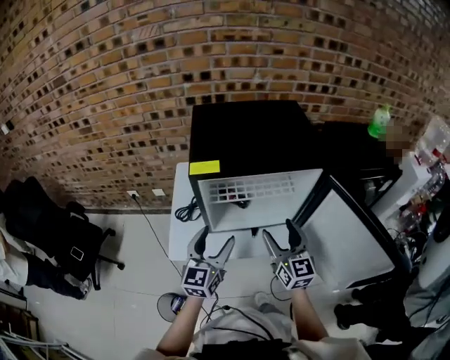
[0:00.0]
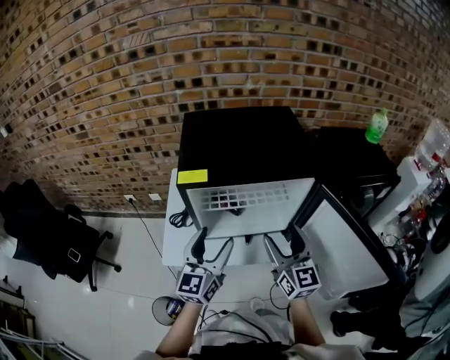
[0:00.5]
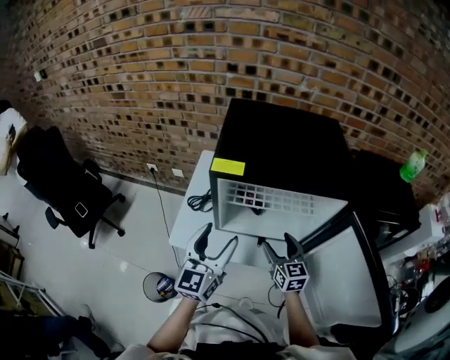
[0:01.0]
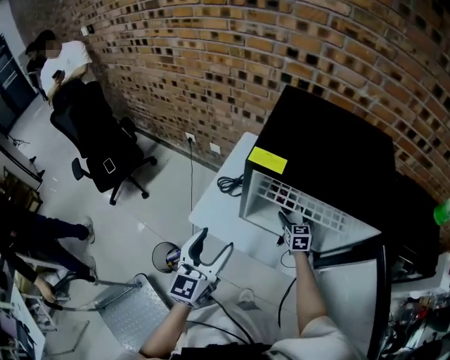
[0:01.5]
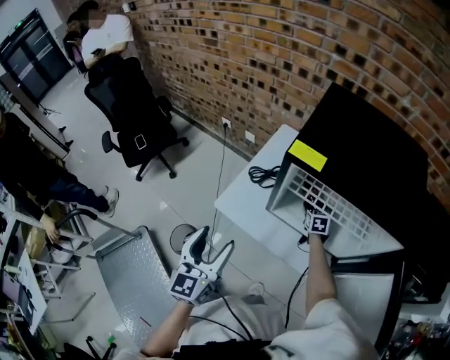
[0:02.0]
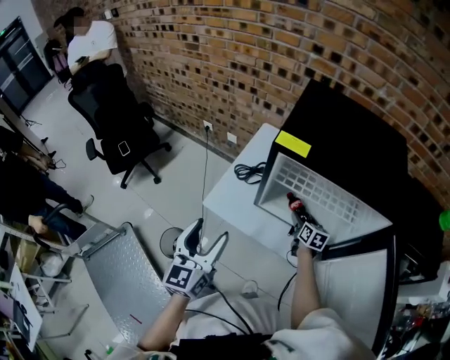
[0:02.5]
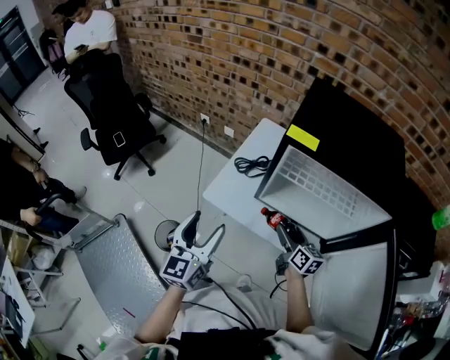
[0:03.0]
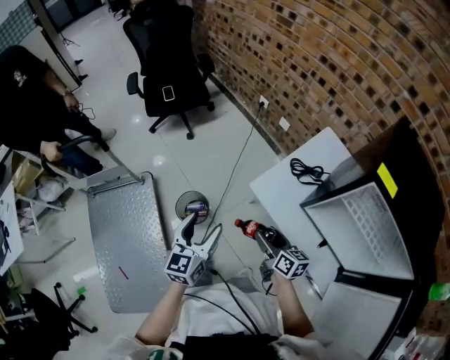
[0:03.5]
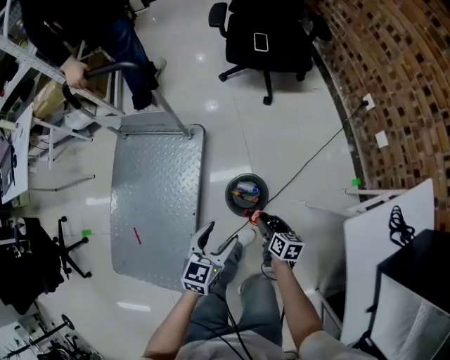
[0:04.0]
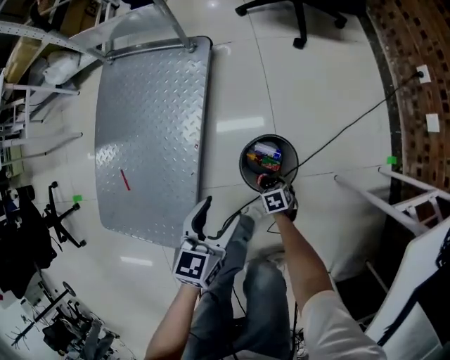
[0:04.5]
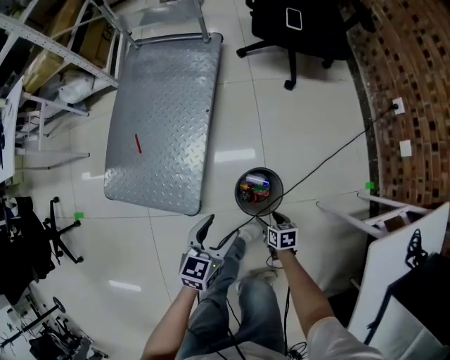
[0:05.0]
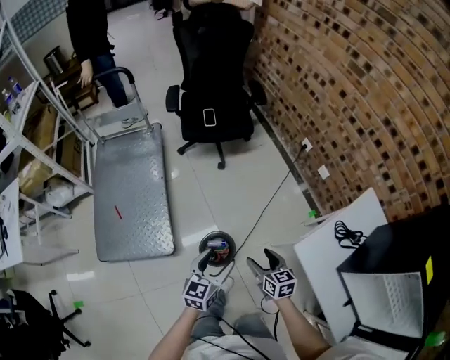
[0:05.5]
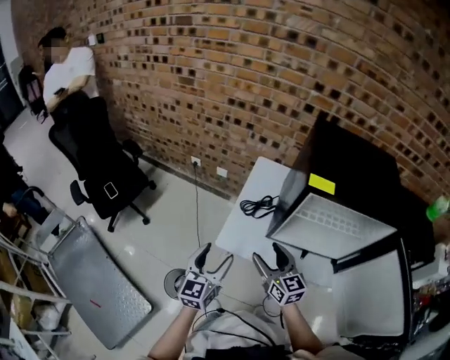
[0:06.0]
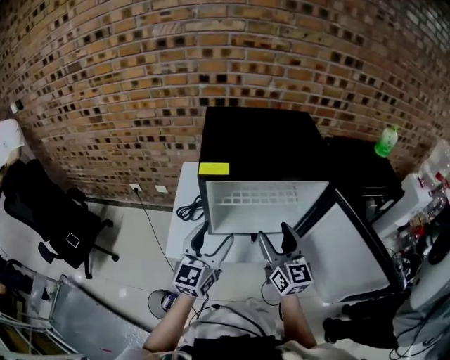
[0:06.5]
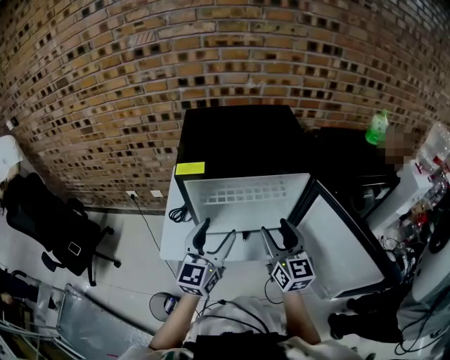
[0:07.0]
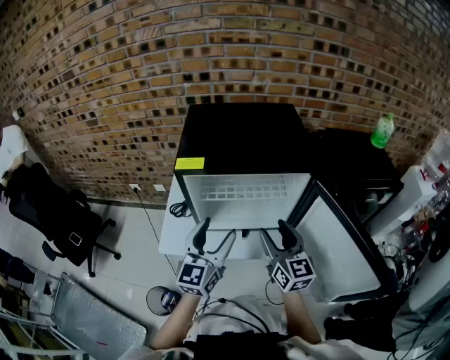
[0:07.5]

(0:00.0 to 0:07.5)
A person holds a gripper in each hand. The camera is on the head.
0:00.0 - 0:02.0: The left gripper moves some 15 cm, and turns by some 40 degrees, while the right gripper is displaced downward by about 30 cm, and angles its fingers downward, by some 40 degrees.
0:02.0 - 0:04.0: The right gripper changes place by some 70 cm, and turns by about 60 degrees. The left gripper heads downward, covering approximately 35 cm, and swivels about 40 degrees.
0:04.0 - 0:05.5: The right gripper shifts about 20 cm upward, and swivels some 20 degrees. The left gripper moves upward, approximately 10 cm.
0:05.5 - 0:07.5: The two grippers travel together, some 60 cm. The left gripper changes its angle by about 60 degrees, while the right gripper angles its fingers upward, by approximately 30 degrees.

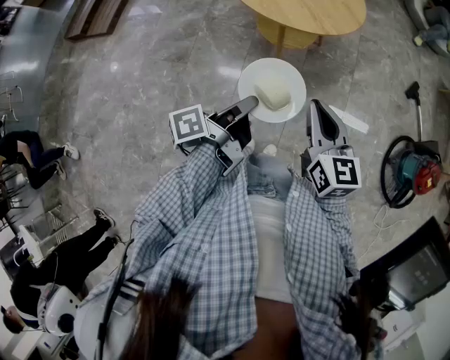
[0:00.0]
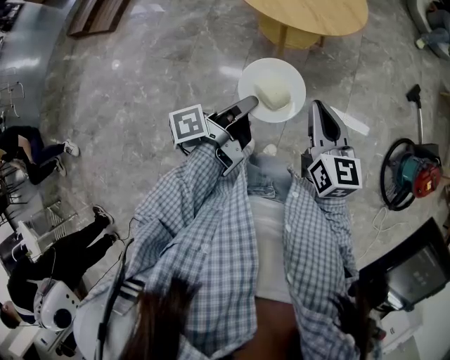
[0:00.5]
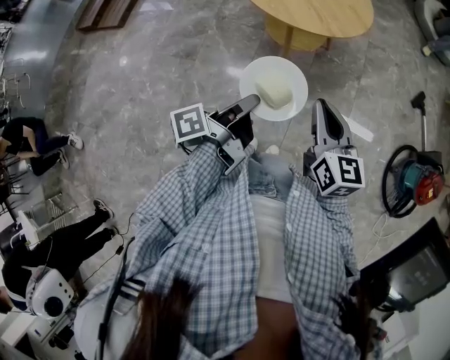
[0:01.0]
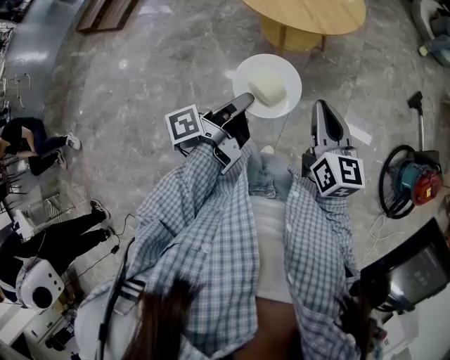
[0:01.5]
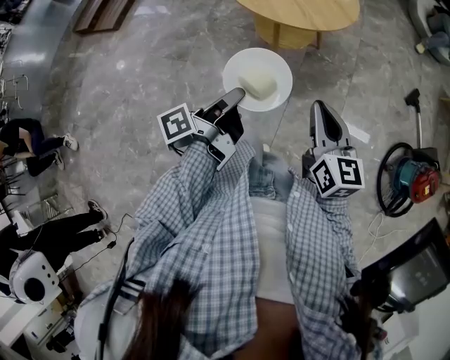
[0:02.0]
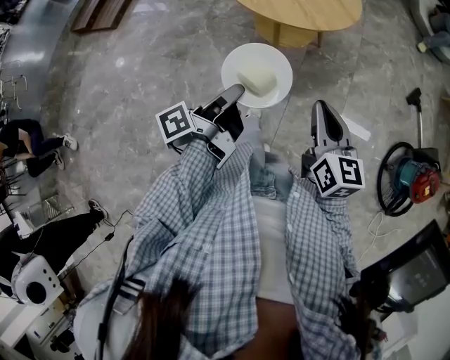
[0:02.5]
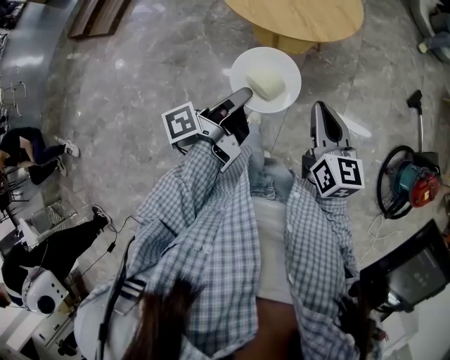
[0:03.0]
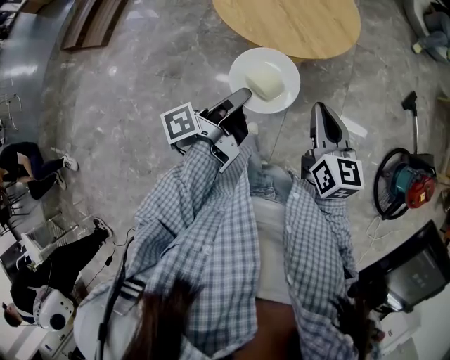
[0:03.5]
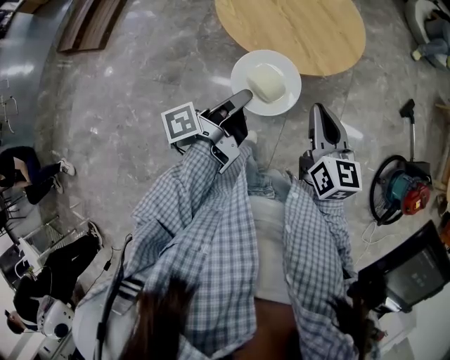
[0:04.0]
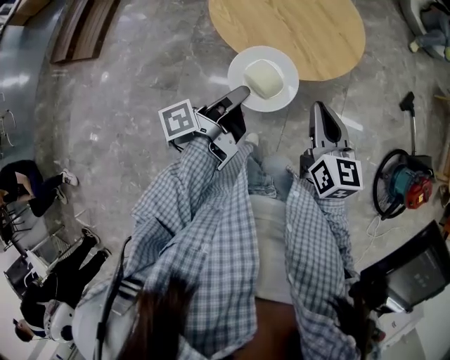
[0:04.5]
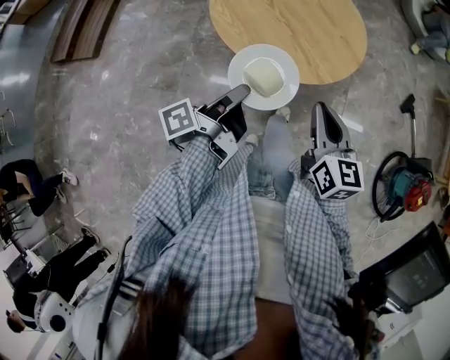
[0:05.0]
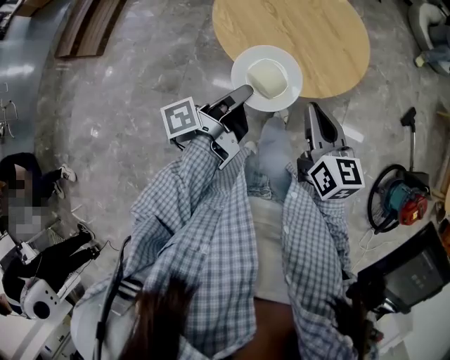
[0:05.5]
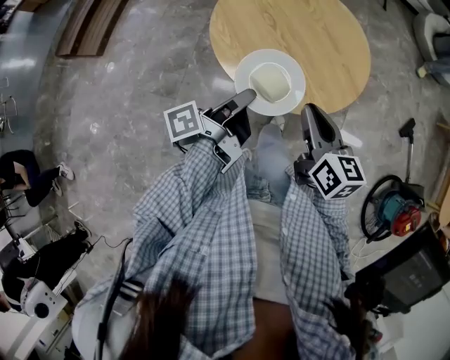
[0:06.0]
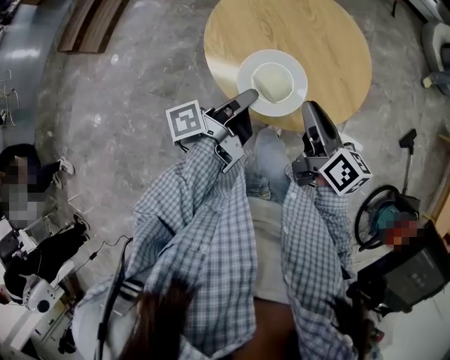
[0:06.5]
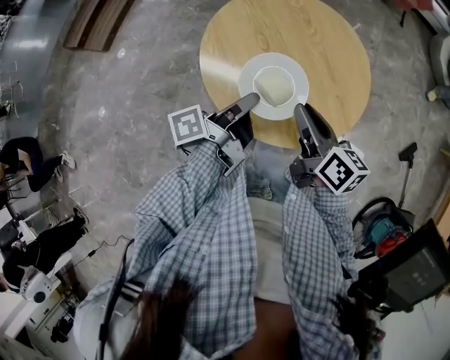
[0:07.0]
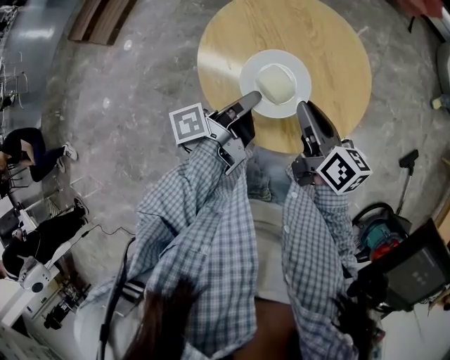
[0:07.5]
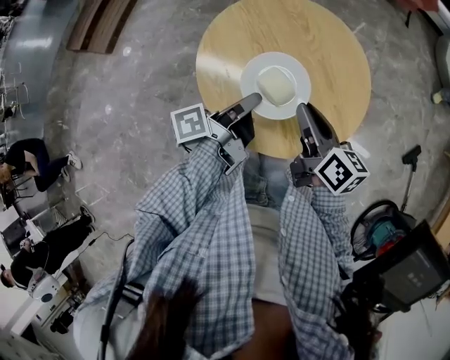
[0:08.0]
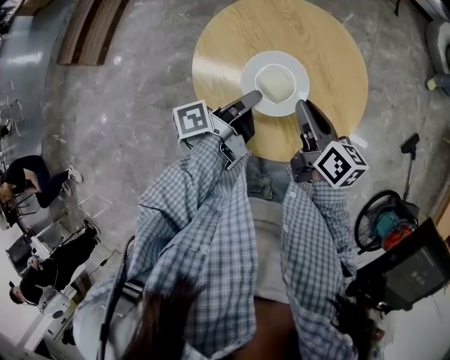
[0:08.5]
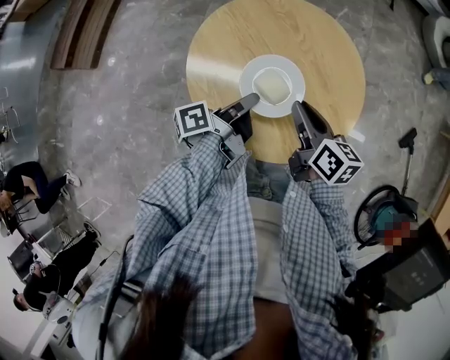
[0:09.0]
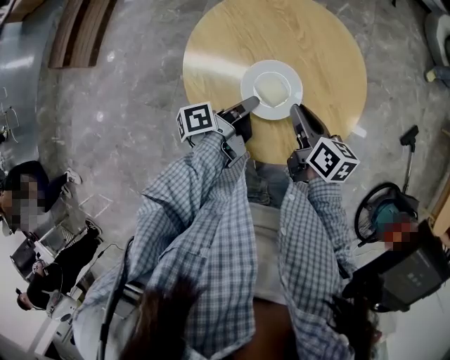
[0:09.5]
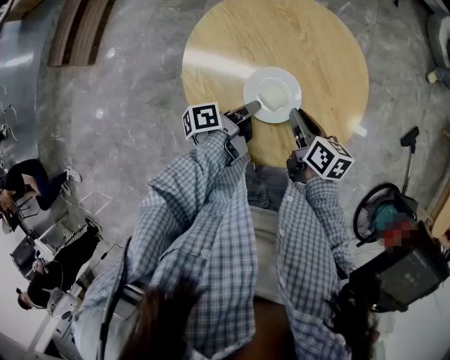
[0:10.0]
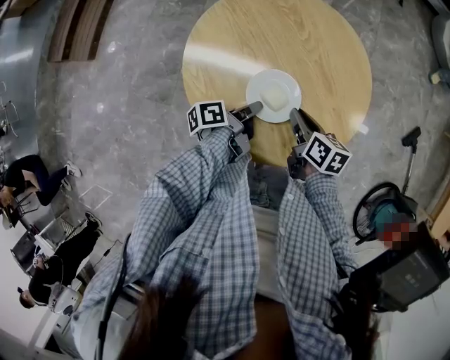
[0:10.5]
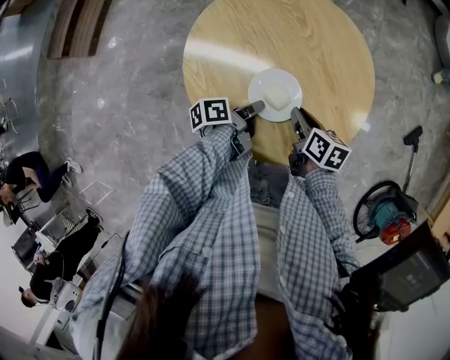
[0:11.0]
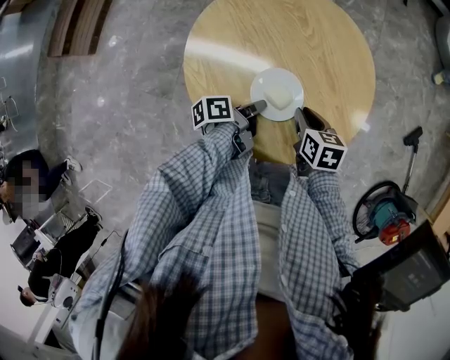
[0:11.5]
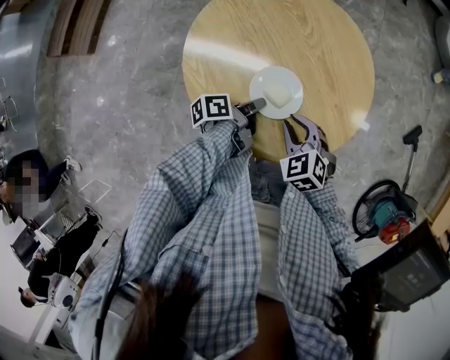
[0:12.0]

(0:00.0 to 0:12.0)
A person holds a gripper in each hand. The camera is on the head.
0:00.0 - 0:02.0: The right gripper moves roughly 5 cm.
0:02.0 - 0:04.0: The right gripper ends up approximately 20 cm from where it was.
0:04.0 - 0:06.0: The right gripper shifts by some 15 cm.
0:06.0 - 0:08.0: The right gripper moves approximately 15 cm, and swivels approximately 20 degrees.
0:08.0 - 0:10.0: The right gripper heads downward, covering some 10 cm.
0:10.0 - 0:12.0: The right gripper changes place by some 5 cm, and twists some 70 degrees counterclockwise, seen from behind.

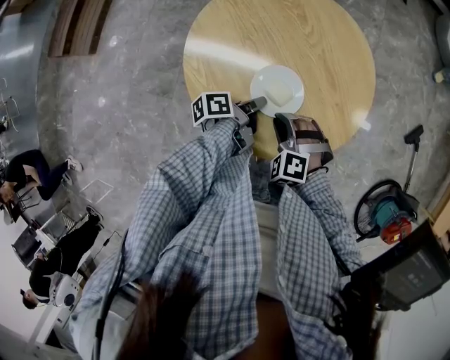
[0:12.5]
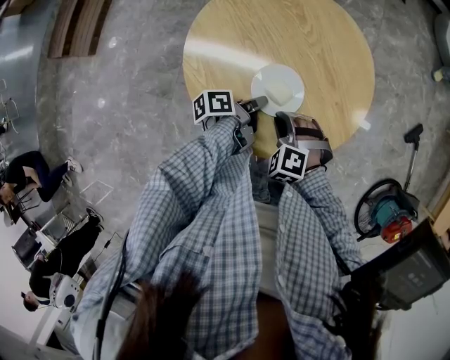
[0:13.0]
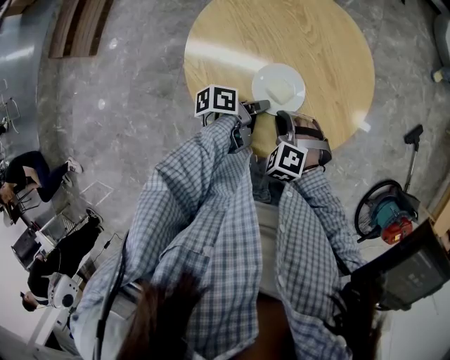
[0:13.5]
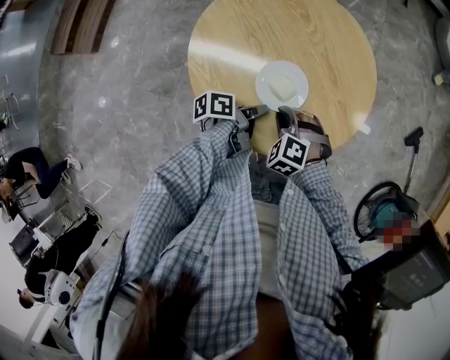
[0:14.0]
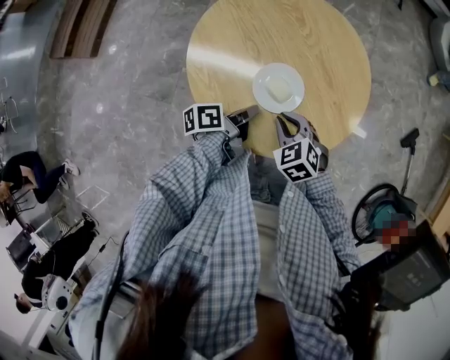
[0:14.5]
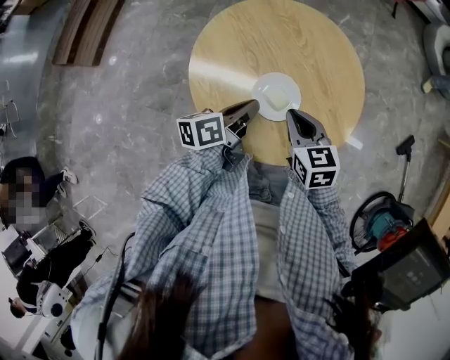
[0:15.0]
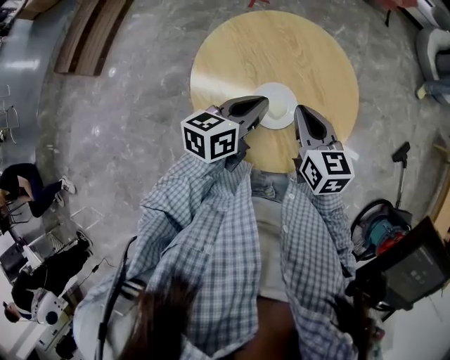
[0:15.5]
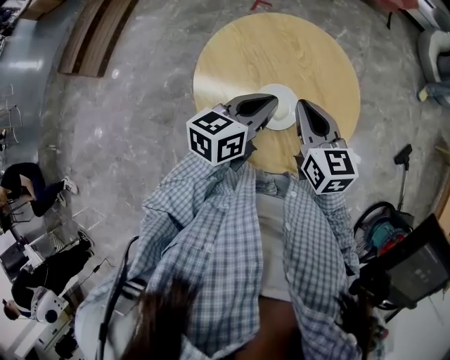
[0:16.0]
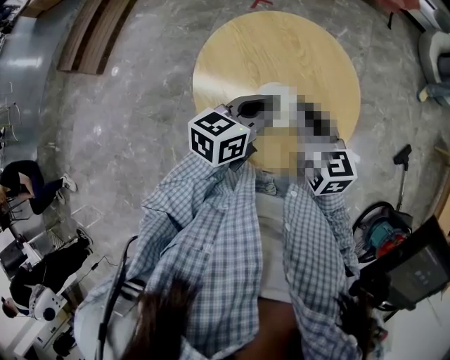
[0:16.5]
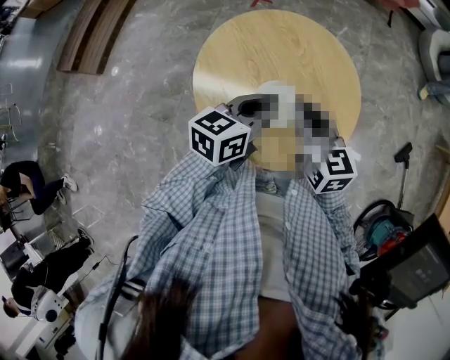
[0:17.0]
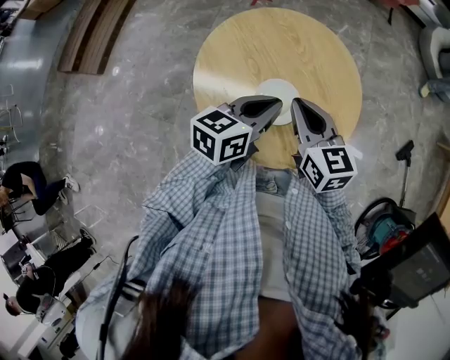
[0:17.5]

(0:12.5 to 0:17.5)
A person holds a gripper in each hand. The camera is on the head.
0:12.5 - 0:15.0: The right gripper heads upward, covering roughly 10 cm, and rolls clockwise, seen from behind, by about 60 degrees.
0:15.0 - 0:17.5: The right gripper is displaced upward by roughly 10 cm.

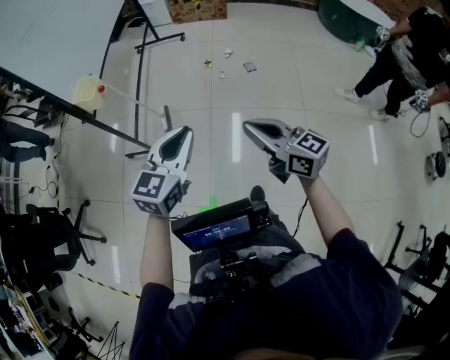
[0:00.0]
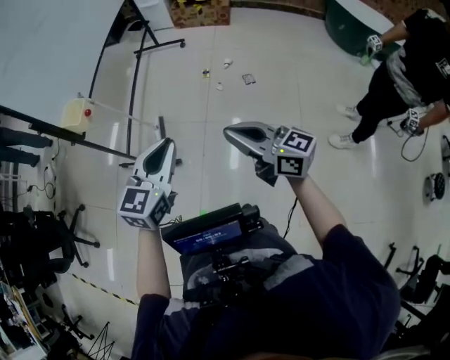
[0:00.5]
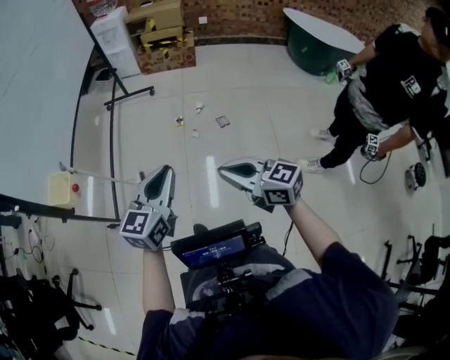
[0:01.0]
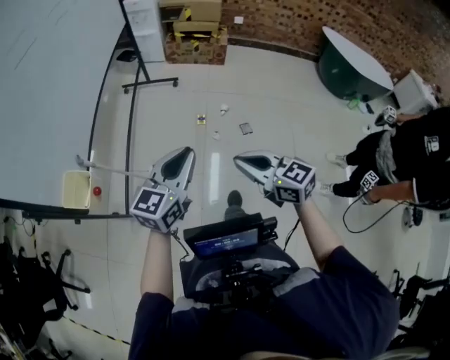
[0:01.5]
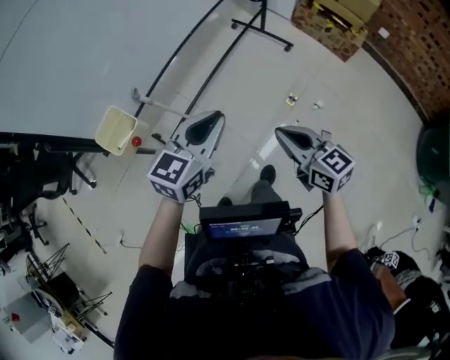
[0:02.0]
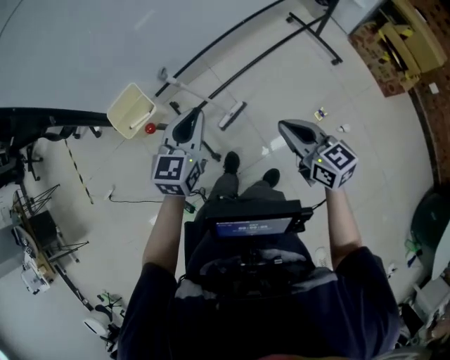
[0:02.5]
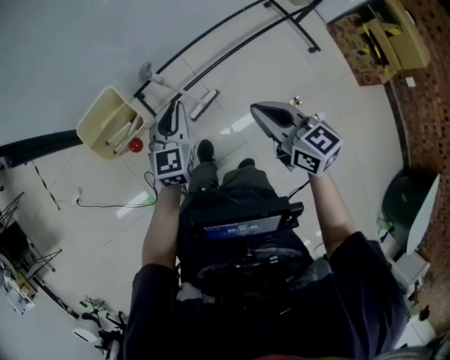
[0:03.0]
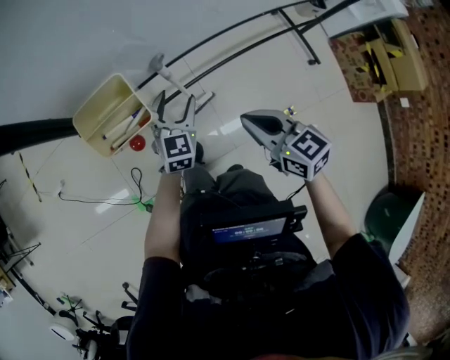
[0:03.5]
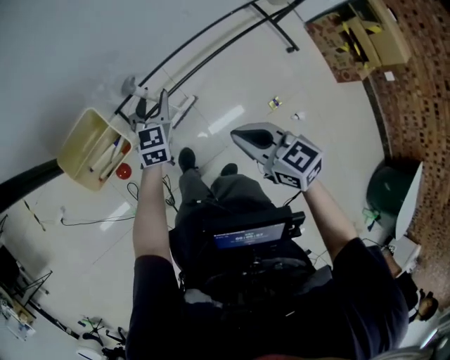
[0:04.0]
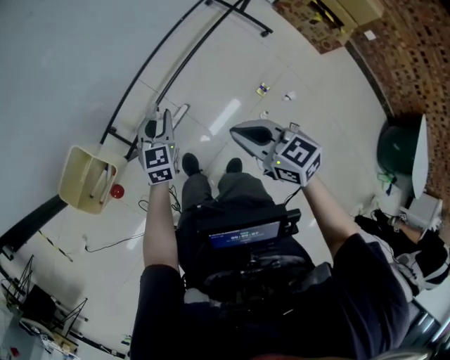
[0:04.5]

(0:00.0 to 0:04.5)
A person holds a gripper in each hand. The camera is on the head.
0:00.0 - 0:02.0: The two grippers travel together, some 50 cm. The right gripper turns by some 30 degrees; the left gripper turns by roughly 30 degrees.
0:02.0 - 0:04.5: The right gripper shifts by roughly 20 cm, and changes its angle by roughly 20 degrees. Meanwhile the left gripper shifts roughly 25 cm downward, turns by approximately 30 degrees, and opens, then closes once more.
